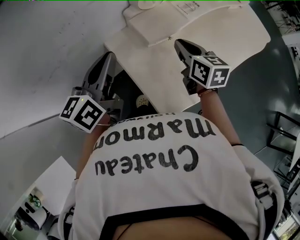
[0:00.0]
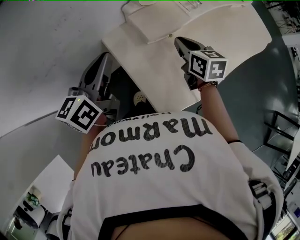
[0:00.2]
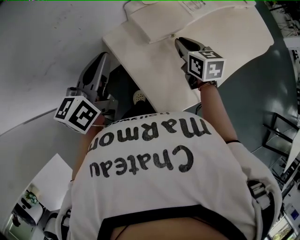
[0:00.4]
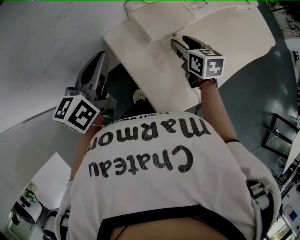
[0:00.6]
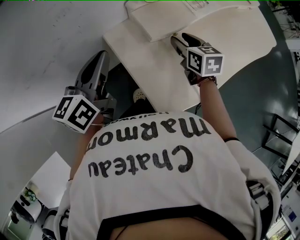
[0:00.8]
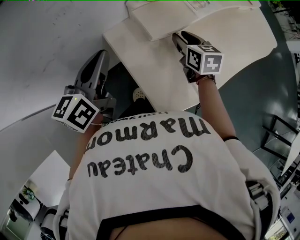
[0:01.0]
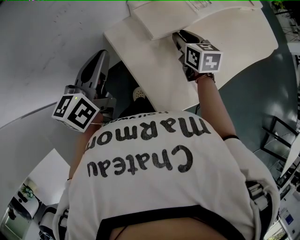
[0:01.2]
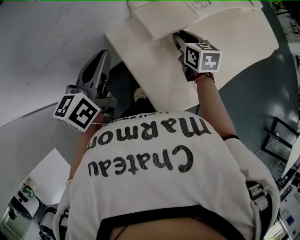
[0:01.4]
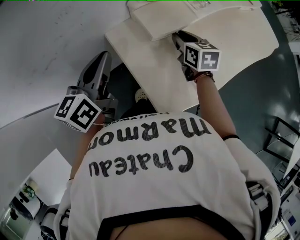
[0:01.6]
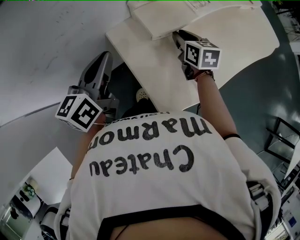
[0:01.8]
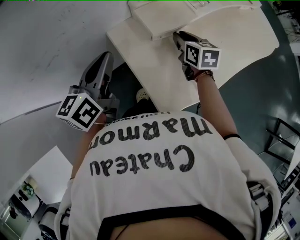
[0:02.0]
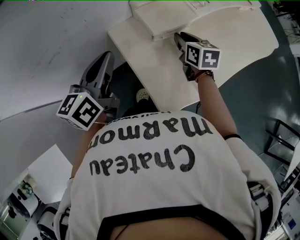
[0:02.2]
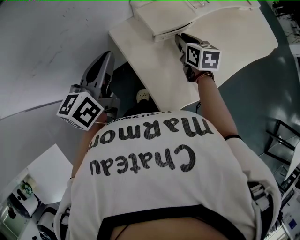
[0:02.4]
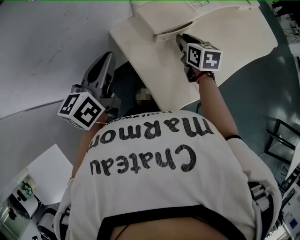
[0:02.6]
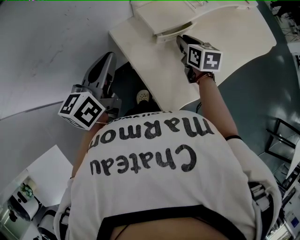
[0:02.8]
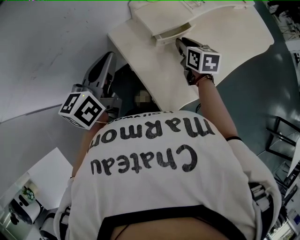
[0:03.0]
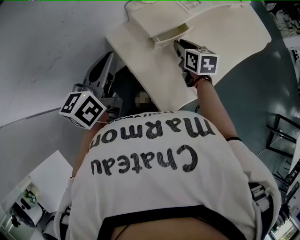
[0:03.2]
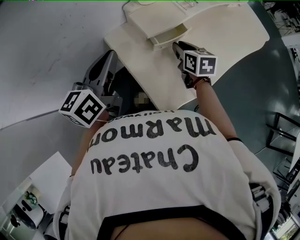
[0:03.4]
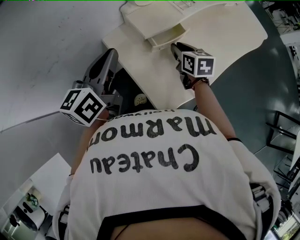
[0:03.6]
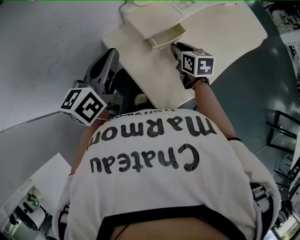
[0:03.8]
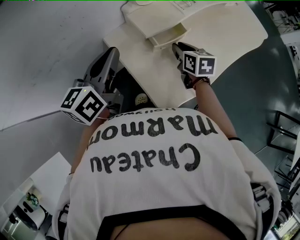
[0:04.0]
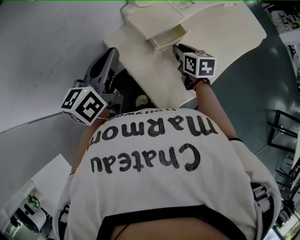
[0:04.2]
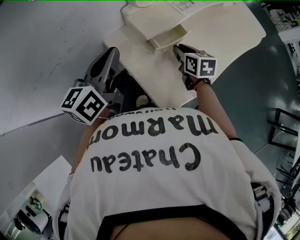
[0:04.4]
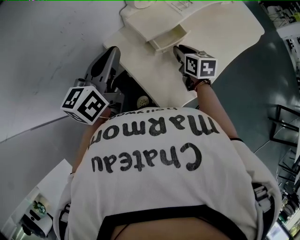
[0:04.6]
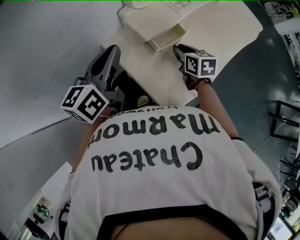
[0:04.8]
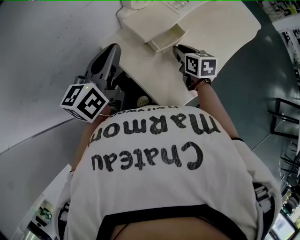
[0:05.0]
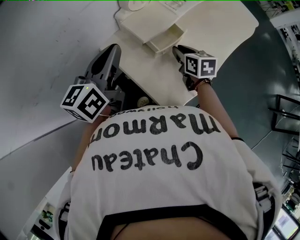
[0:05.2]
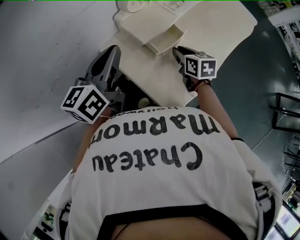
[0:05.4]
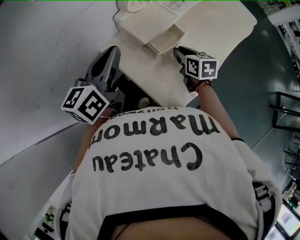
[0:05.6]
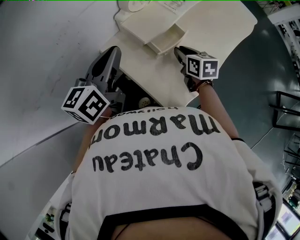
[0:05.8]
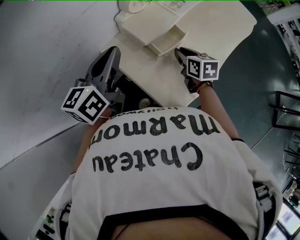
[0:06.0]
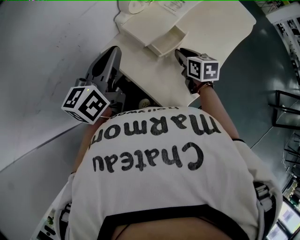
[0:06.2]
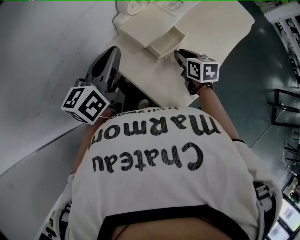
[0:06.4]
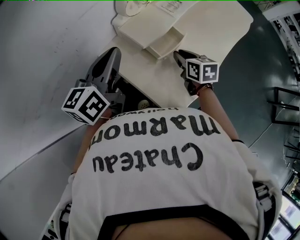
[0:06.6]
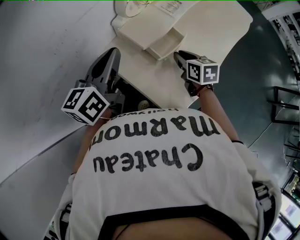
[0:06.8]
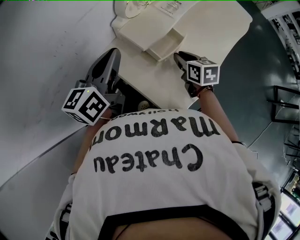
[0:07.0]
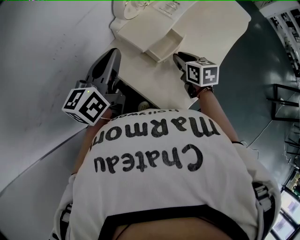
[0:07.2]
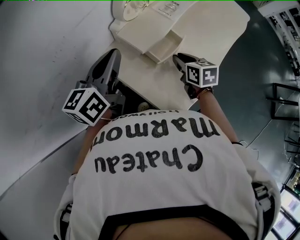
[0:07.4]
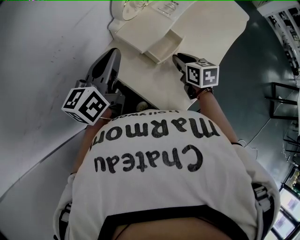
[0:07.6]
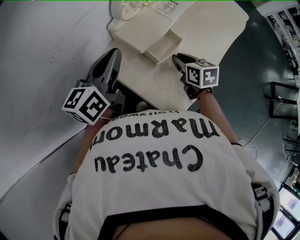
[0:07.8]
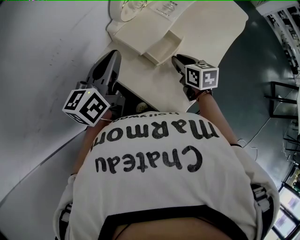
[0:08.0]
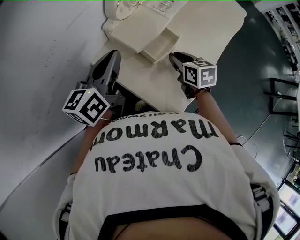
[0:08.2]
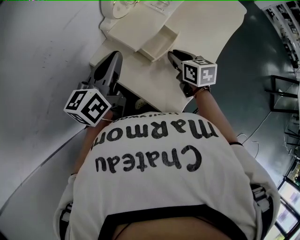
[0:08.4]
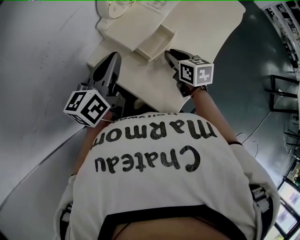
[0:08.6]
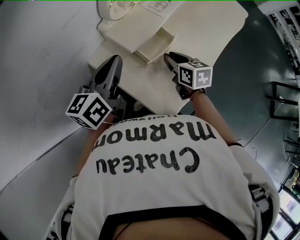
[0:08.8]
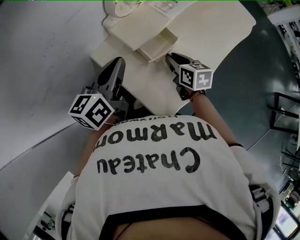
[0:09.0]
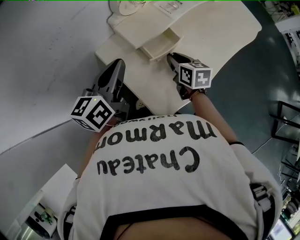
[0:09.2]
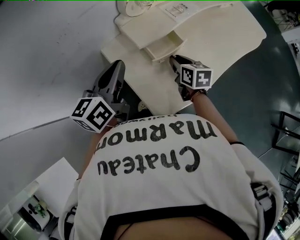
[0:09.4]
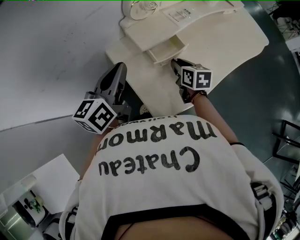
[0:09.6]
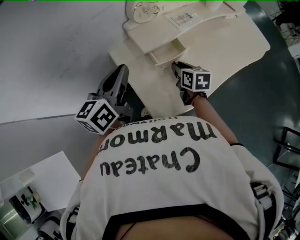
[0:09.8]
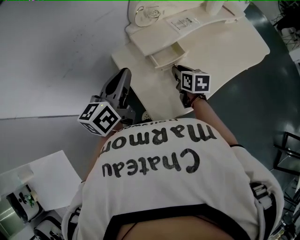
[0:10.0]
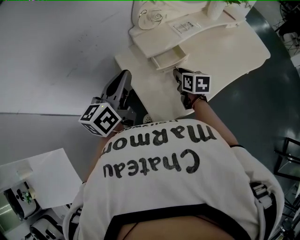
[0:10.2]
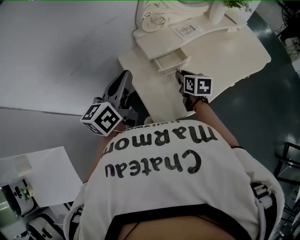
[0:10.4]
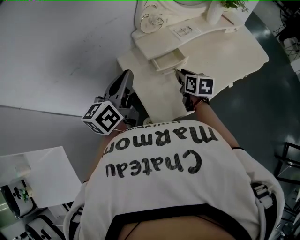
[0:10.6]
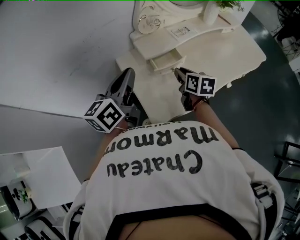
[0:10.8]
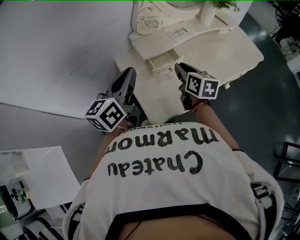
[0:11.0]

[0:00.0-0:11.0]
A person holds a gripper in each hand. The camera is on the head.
0.0 to 1.6 s: The right gripper goes some 5 cm downward, and opens and closes again.
1.6 to 4.8 s: The grippers make only small movements.
4.8 to 7.8 s: The grippers make only small movements.
7.8 to 9.4 s: The left gripper goes roughly 5 cm backward.
9.4 to 11.0 s: The left gripper heads backward and upward, covering approximately 10 cm. The right gripper shifts about 10 cm upward.

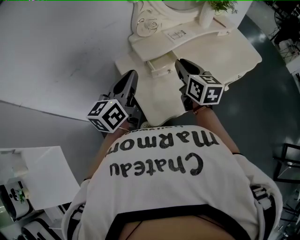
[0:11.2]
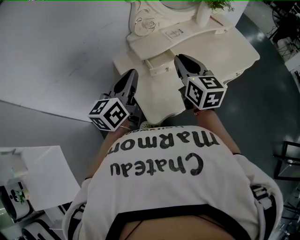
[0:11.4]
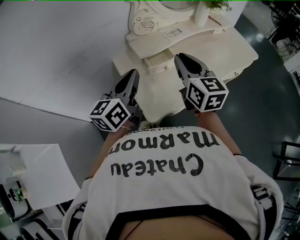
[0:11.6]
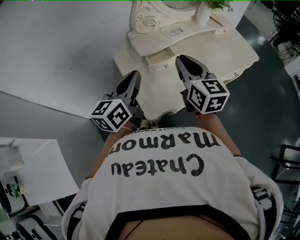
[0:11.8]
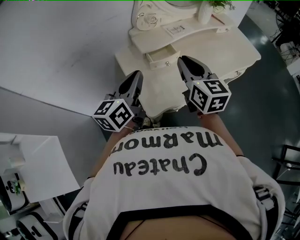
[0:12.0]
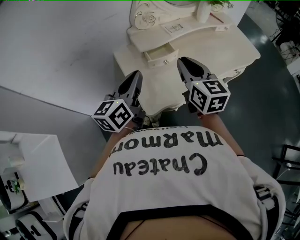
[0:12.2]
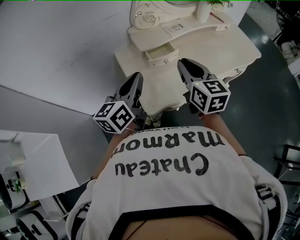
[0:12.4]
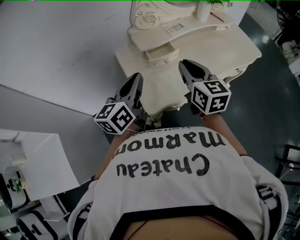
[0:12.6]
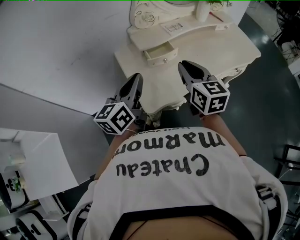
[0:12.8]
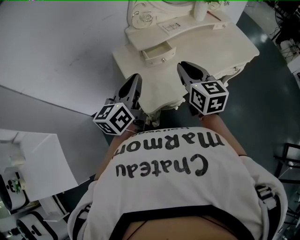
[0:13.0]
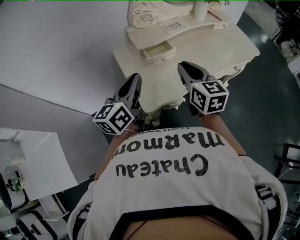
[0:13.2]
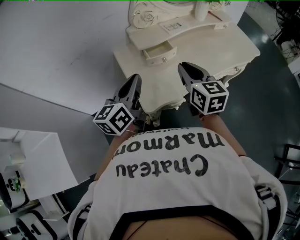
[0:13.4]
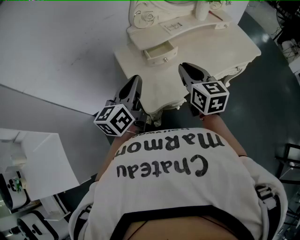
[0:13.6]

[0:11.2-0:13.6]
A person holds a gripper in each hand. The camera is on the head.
11.2 to 12.4 s: The two grippers go roughly 5 cm backward.
12.4 to 13.6 s: The grippers make only small movements.

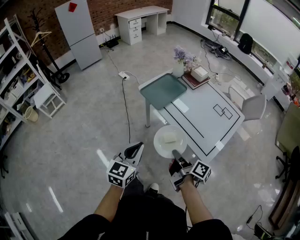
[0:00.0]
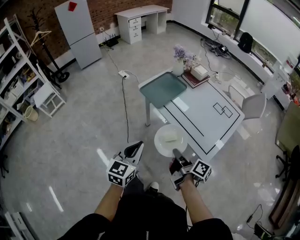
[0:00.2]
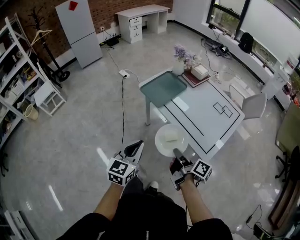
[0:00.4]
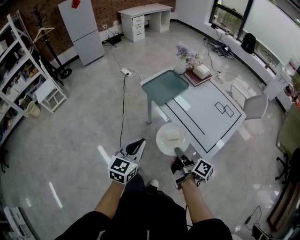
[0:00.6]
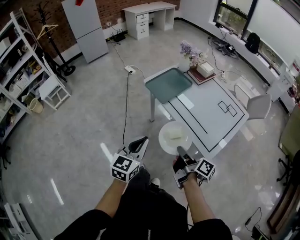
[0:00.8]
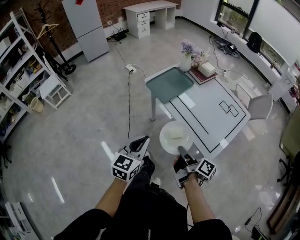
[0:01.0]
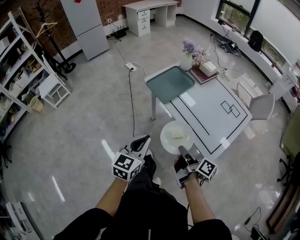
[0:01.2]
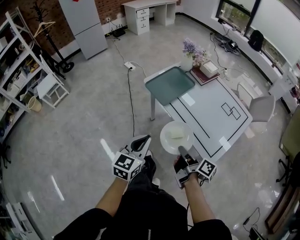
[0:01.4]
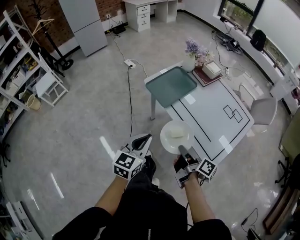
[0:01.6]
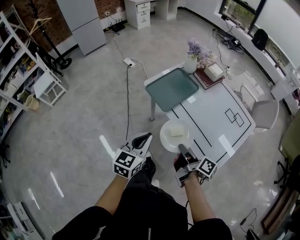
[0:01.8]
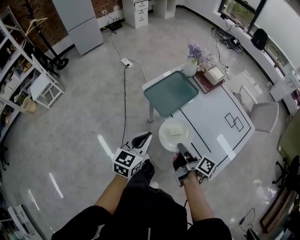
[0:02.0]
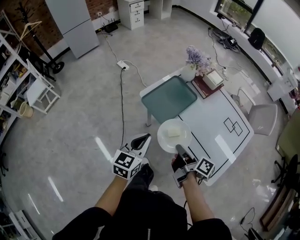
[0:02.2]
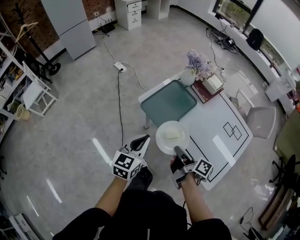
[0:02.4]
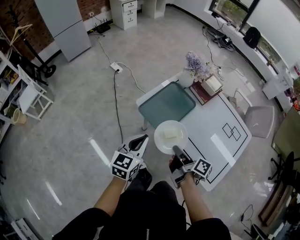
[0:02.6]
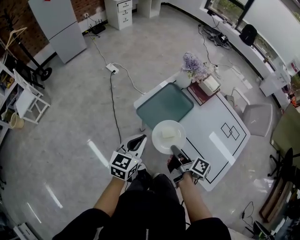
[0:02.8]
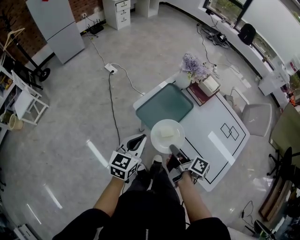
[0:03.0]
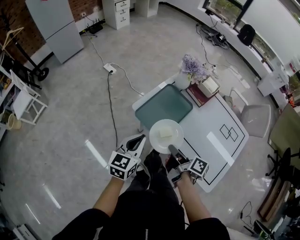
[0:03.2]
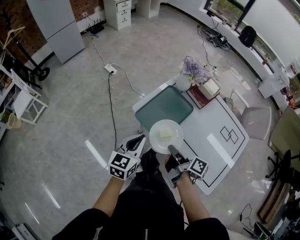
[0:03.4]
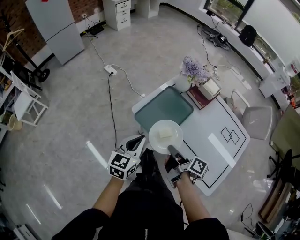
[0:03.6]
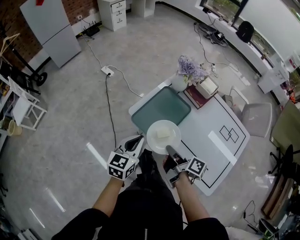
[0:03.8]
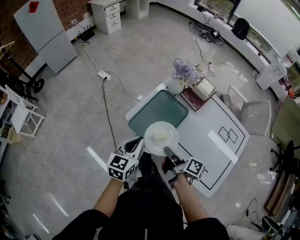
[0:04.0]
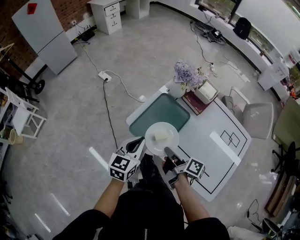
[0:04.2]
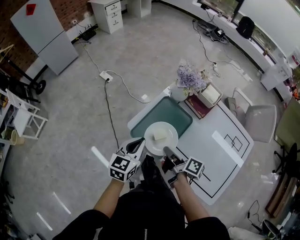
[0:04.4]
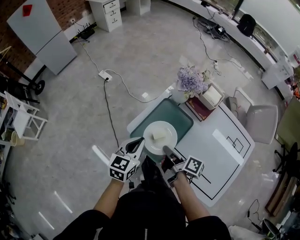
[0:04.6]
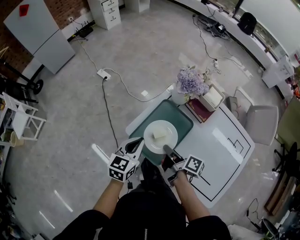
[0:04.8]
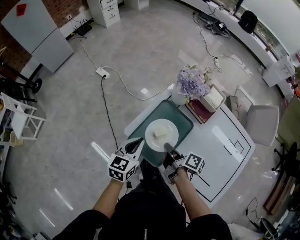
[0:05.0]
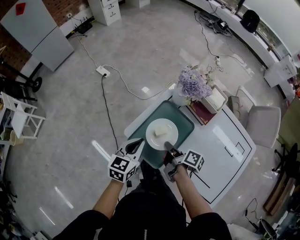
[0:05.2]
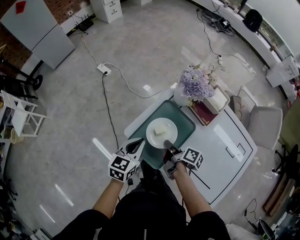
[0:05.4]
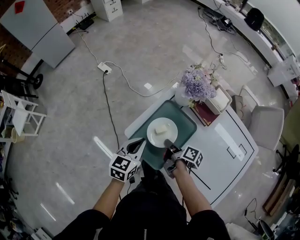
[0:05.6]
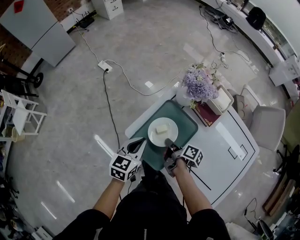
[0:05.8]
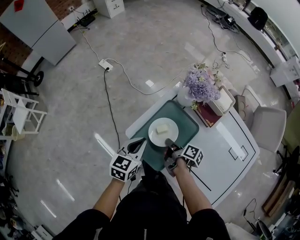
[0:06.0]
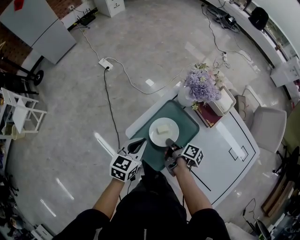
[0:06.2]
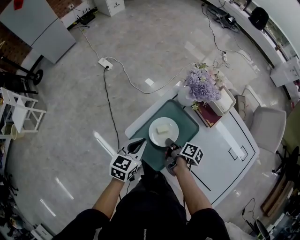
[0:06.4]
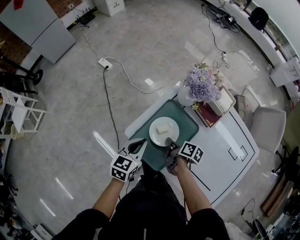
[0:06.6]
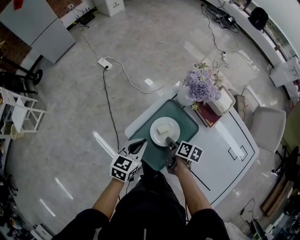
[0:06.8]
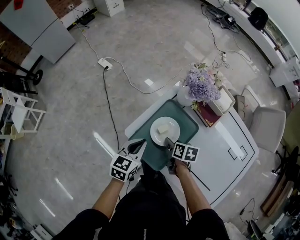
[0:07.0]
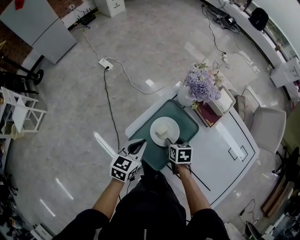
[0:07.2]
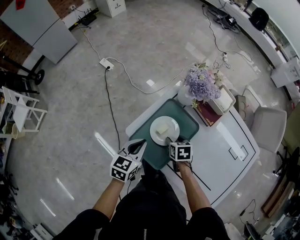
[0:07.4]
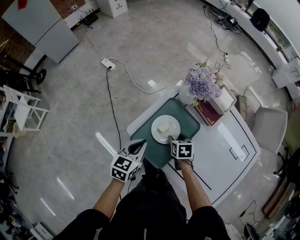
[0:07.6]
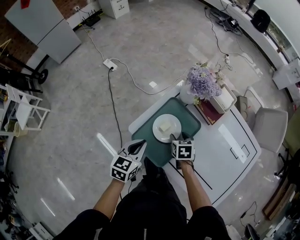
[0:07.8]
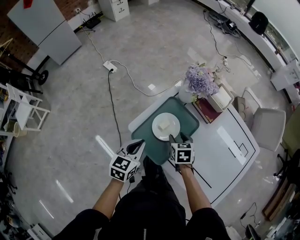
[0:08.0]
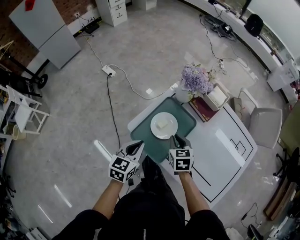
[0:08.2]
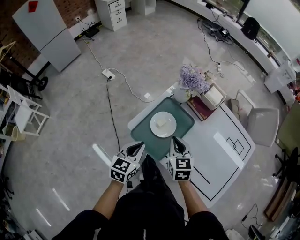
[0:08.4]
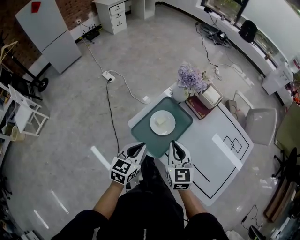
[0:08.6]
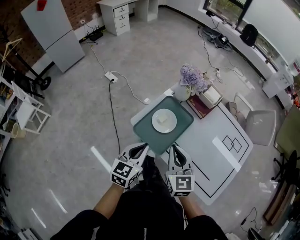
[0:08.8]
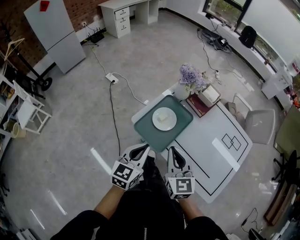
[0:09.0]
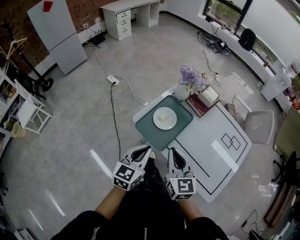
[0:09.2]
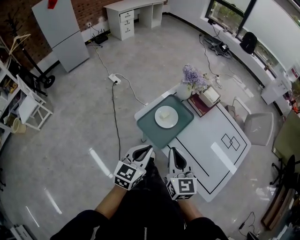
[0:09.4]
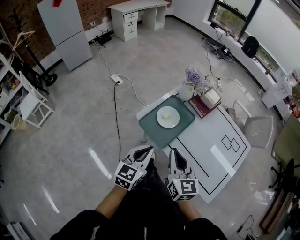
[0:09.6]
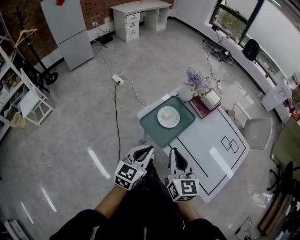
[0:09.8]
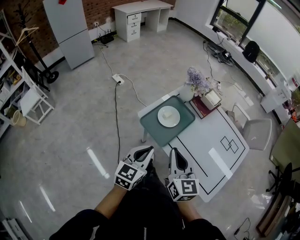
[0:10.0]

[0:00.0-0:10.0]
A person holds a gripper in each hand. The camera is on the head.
0.0 to 1.4 s: The left gripper ends up approximately 5 cm from where it was.
1.4 to 2.8 s: The left gripper moves about 25 cm.
2.8 to 4.2 s: The left gripper changes place by some 10 cm.
4.2 to 5.8 s: The left gripper moves roughly 15 cm.
7.2 to 8.6 s: The left gripper moves about 15 cm.
8.6 to 10.0 s: The left gripper changes place by about 15 cm.

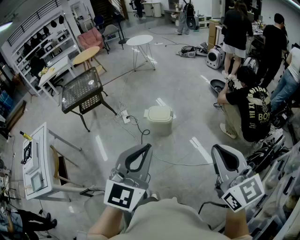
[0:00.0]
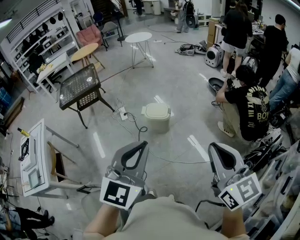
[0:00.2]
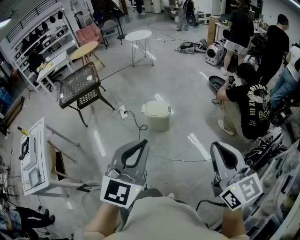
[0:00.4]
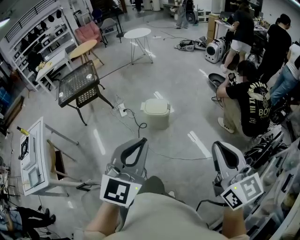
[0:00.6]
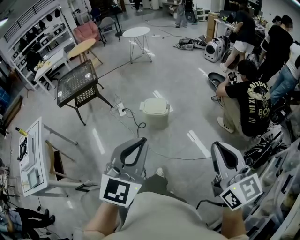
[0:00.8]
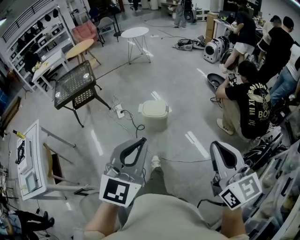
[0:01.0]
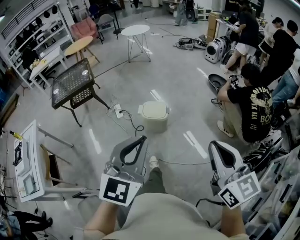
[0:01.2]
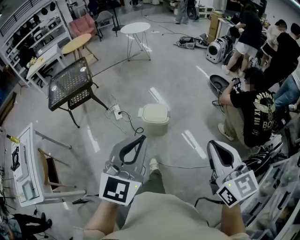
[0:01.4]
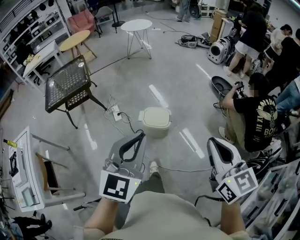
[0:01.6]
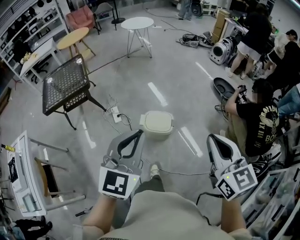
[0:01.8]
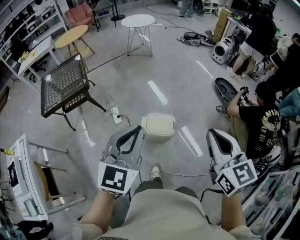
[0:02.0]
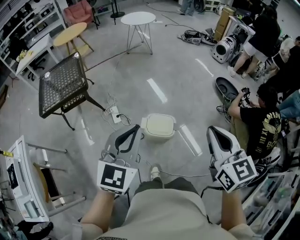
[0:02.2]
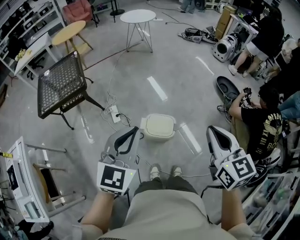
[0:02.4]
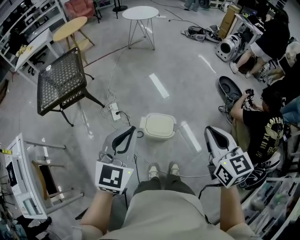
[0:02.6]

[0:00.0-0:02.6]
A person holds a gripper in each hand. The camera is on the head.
0.0 to 1.2 s: The two grippers go approximately 10 cm forward.
1.2 to 2.6 s: The two grippers go some 40 cm forward.
